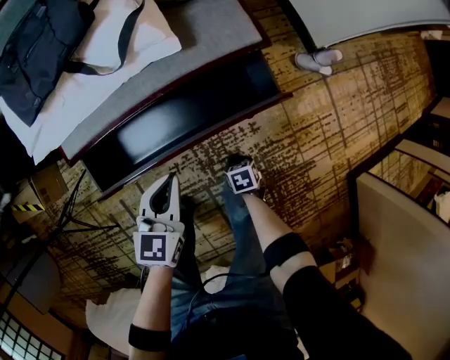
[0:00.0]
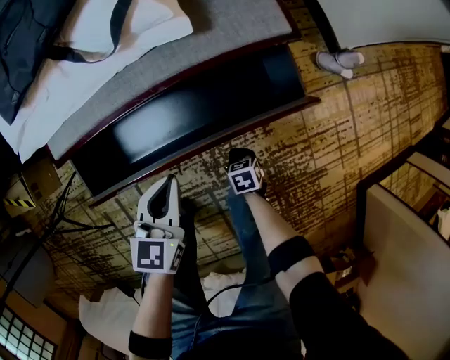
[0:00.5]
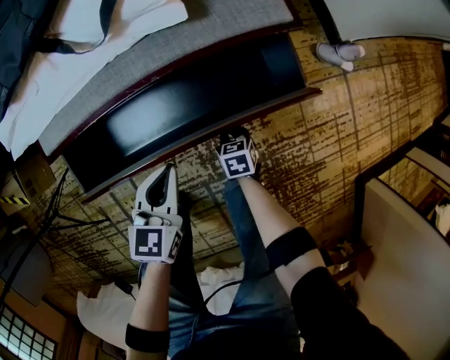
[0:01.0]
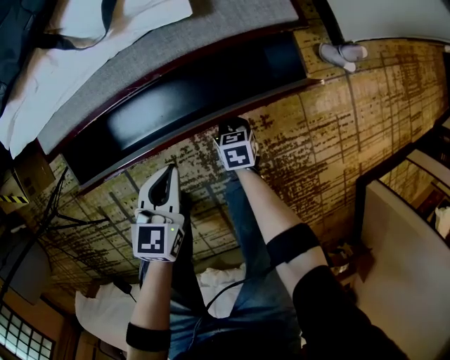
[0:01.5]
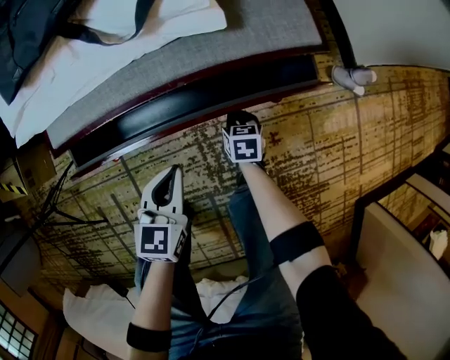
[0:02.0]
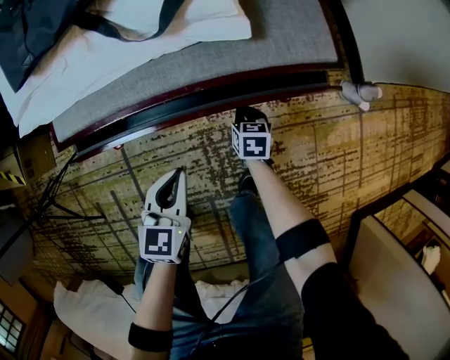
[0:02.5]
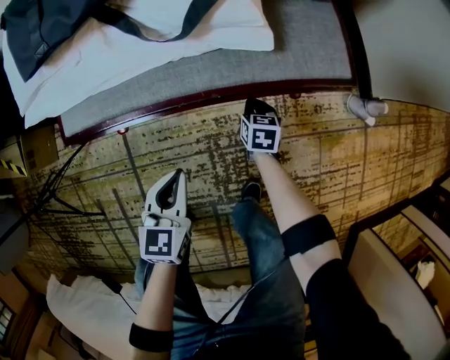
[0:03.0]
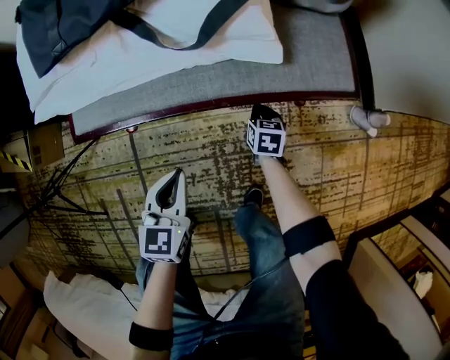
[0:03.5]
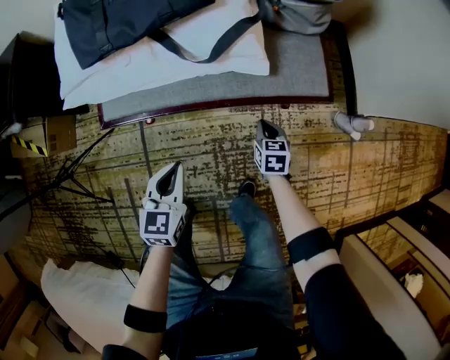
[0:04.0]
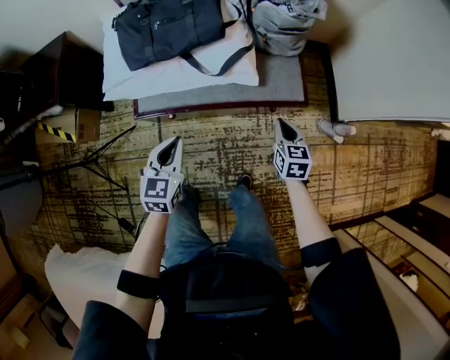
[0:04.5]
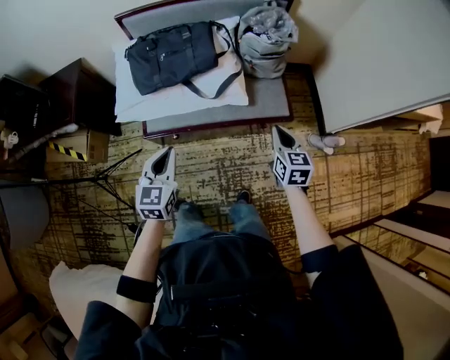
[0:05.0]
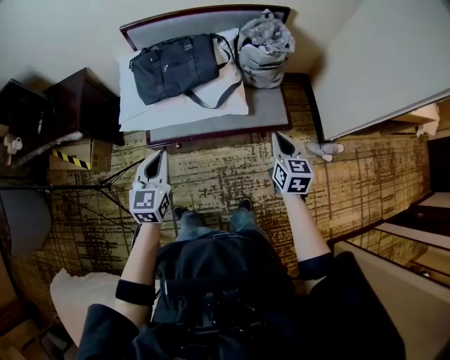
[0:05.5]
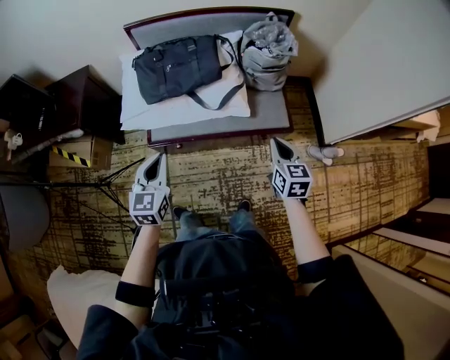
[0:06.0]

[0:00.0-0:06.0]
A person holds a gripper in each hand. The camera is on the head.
0.0 to 2.0 s: The right gripper is displaced forward by about 20 cm, and turns by about 20 degrees, while the left gripper heads downward, covering some 15 cm.
2.0 to 4.0 s: The left gripper goes about 15 cm upward and to the left. The right gripper moves upward, about 15 cm.
4.0 to 6.0 s: Both grippers move upward, roughly 40 cm. The right gripper changes its angle by roughly 20 degrees.

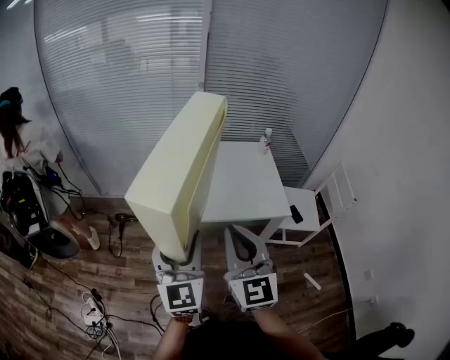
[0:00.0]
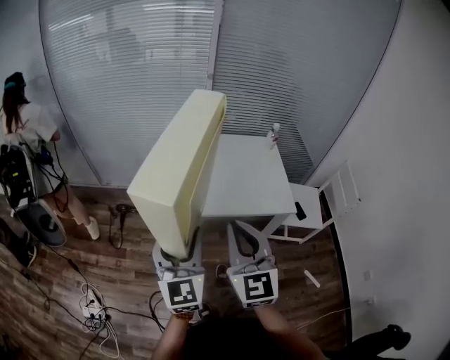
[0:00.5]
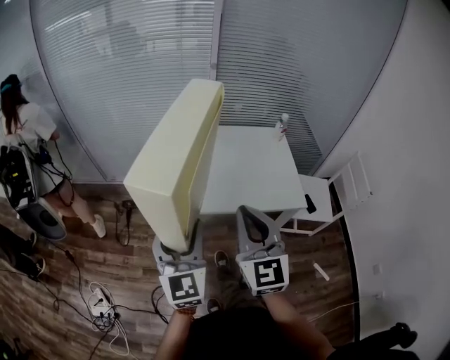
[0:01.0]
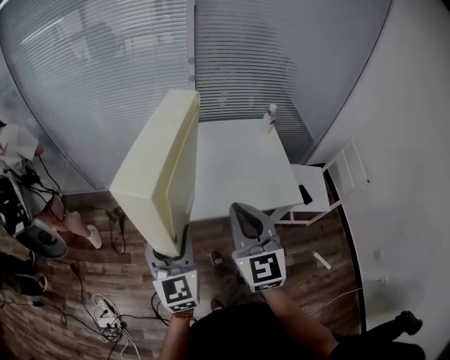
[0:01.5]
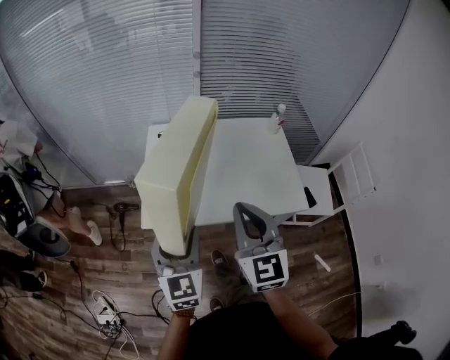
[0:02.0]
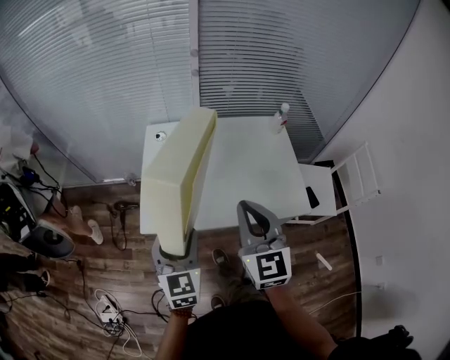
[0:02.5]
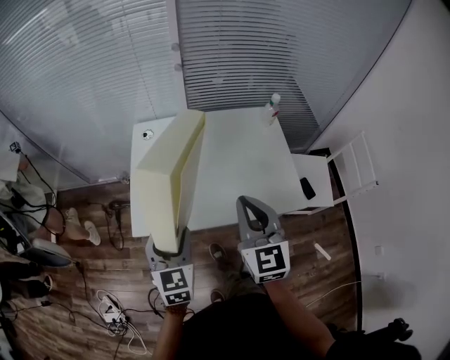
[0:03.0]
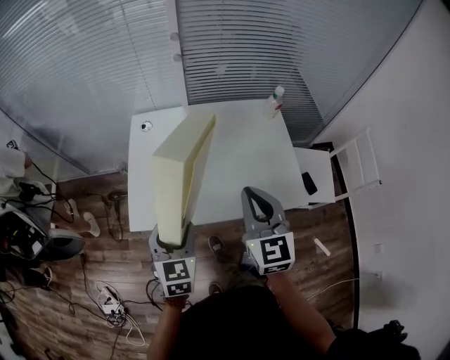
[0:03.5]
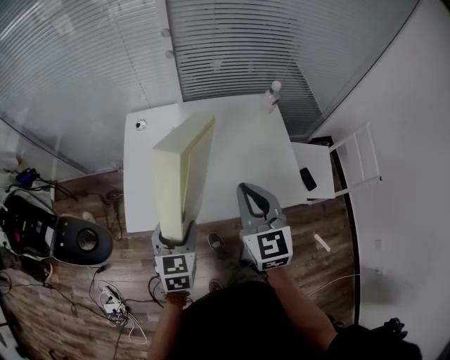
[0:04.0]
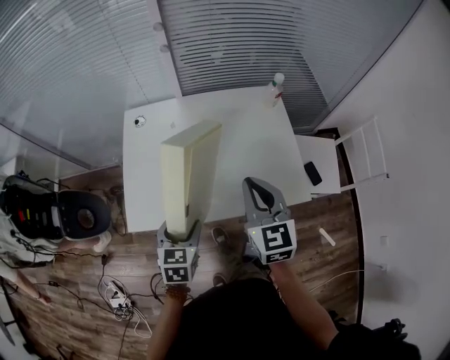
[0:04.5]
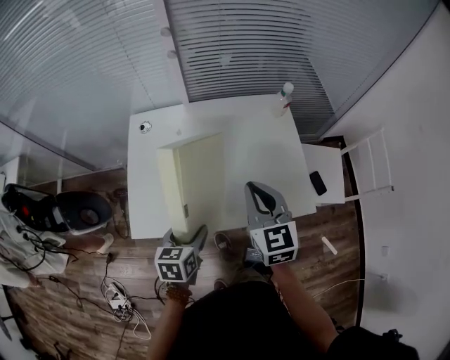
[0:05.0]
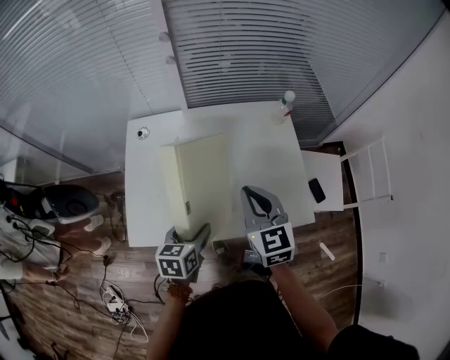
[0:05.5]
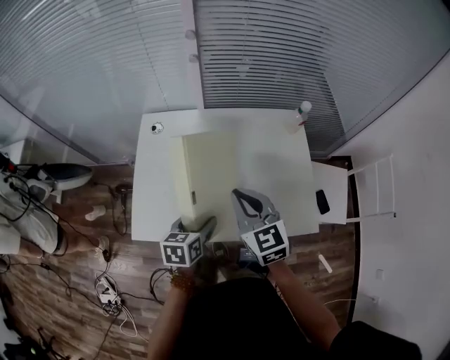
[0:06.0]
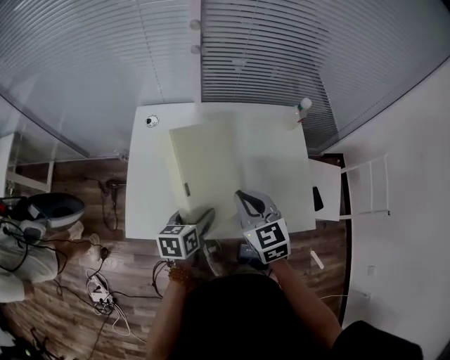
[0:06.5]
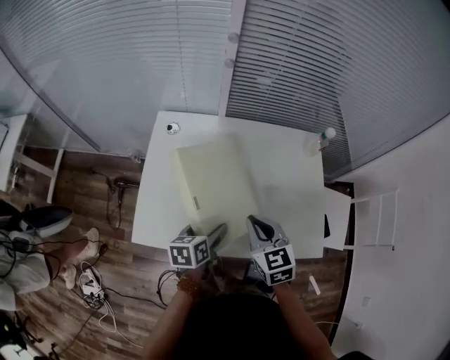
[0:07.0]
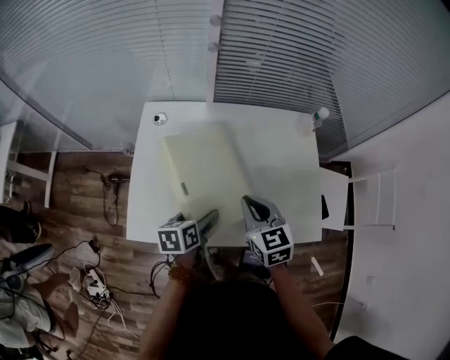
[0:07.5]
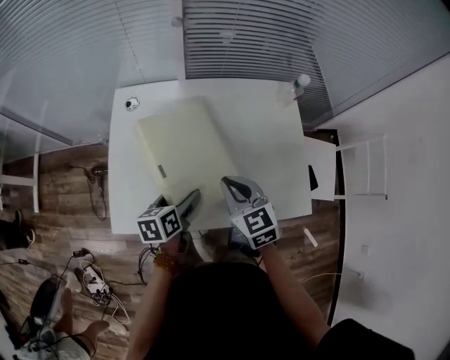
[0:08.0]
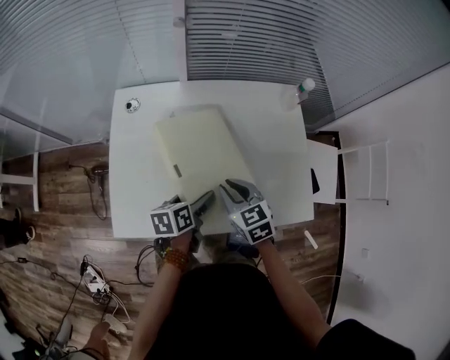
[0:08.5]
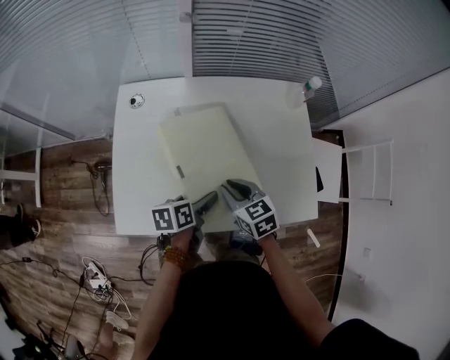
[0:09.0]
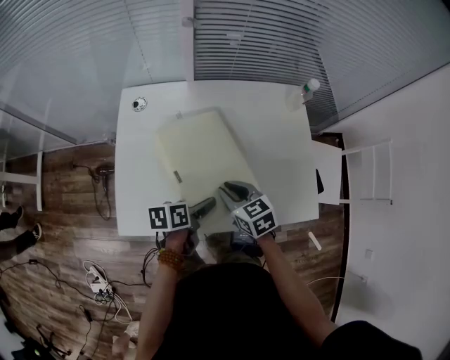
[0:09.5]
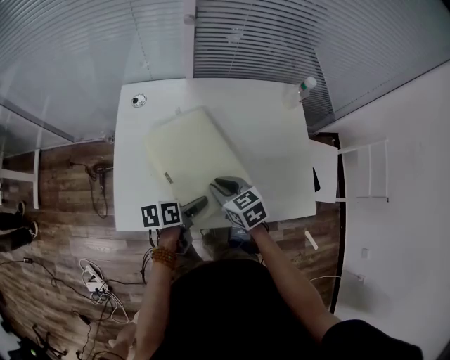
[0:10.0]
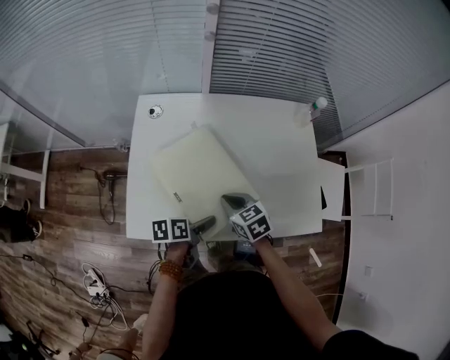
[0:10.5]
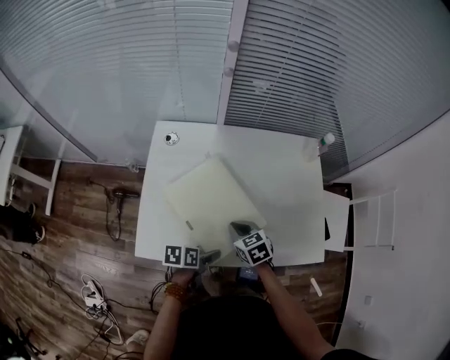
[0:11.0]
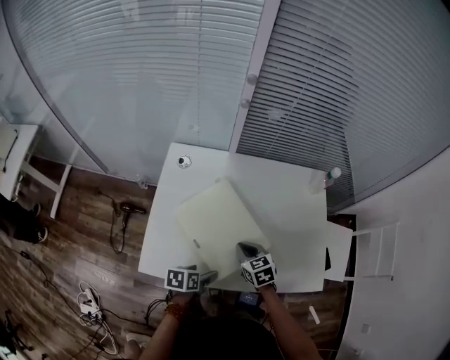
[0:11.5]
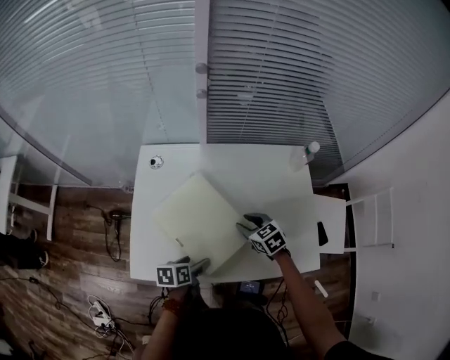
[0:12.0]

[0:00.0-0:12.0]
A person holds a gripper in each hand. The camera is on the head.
0.0 to 2.0 s: The right gripper is displaced forward by about 20 cm, while the left gripper shifts approximately 20 cm forward and downward.
2.0 to 4.0 s: The right gripper heads forward, to the right and downward, covering roughly 15 cm. The left gripper heads downward, forward and to the right, covering roughly 15 cm, and rotates roughly 20 degrees.
4.0 to 6.0 s: The two grippers go roughly 10 cm forward and downward. The left gripper turns by approximately 30 degrees.
6.0 to 8.0 s: The left gripper heads downward and forward, covering approximately 10 cm. The right gripper travels downward by roughly 10 cm.
8.0 to 10.0 s: The right gripper goes about 10 cm downward; the left gripper ends up some 5 cm from where it was.
10.0 to 12.0 s: The right gripper goes roughly 10 cm forward and to the right.

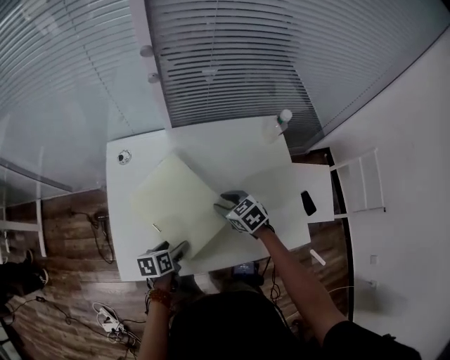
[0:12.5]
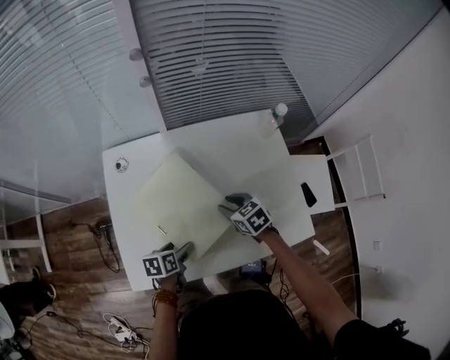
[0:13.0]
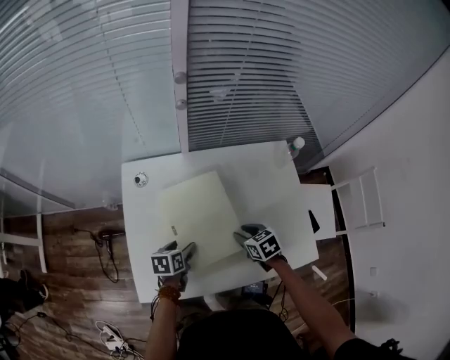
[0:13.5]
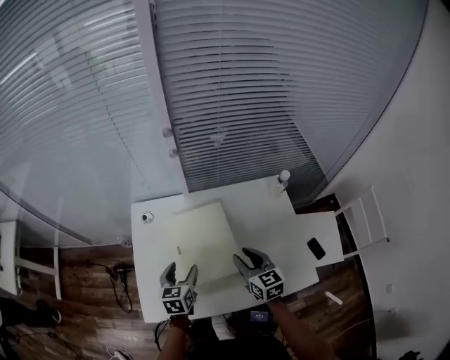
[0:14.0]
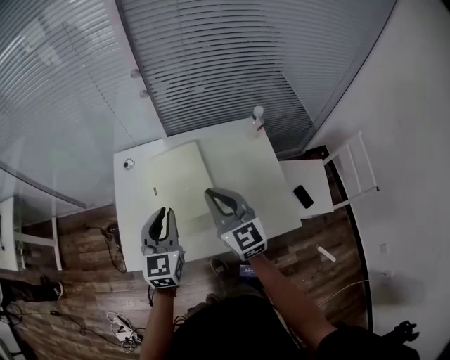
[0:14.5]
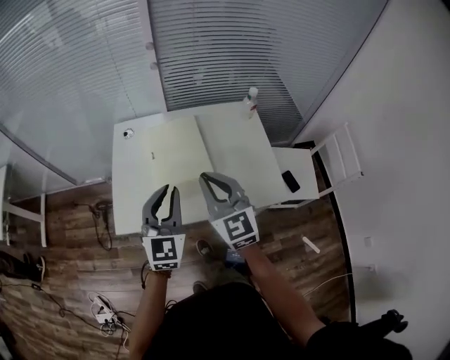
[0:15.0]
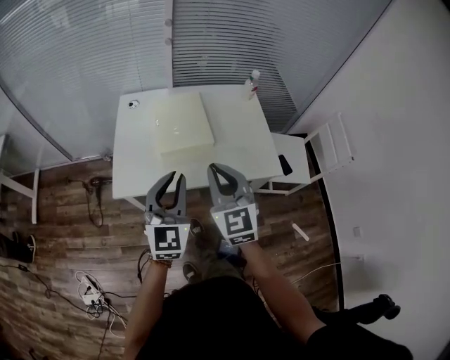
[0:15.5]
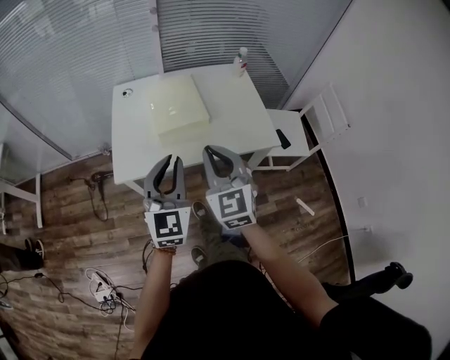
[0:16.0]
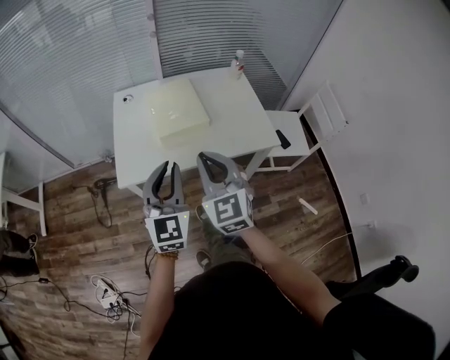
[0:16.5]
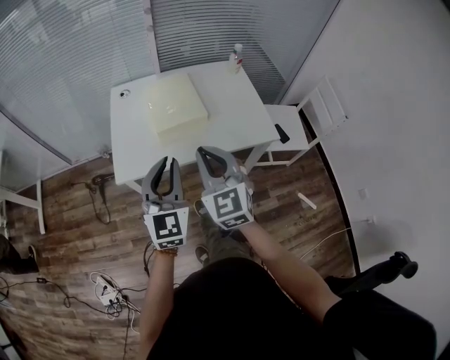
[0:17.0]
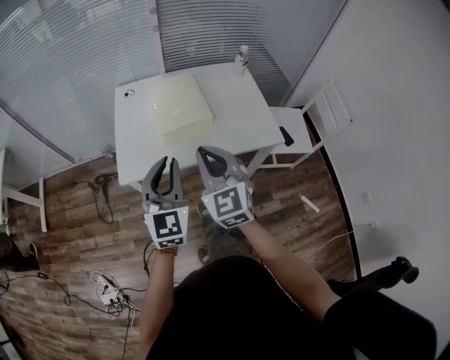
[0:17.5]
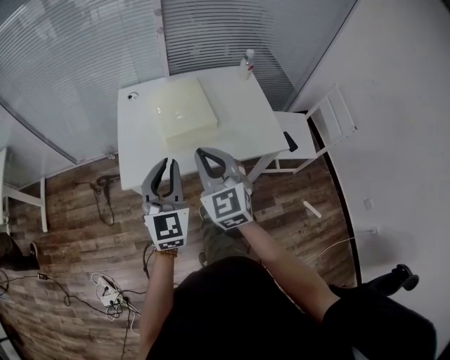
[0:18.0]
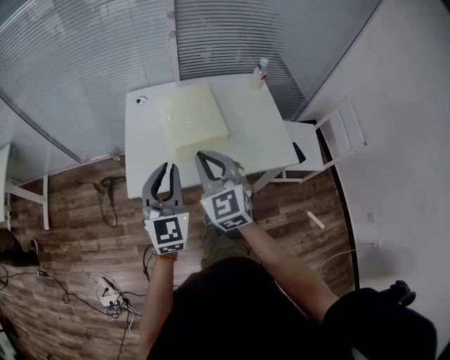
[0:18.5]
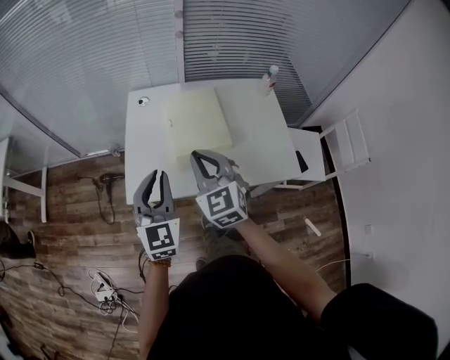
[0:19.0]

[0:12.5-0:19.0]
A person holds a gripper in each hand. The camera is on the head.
12.5 to 14.5 s: Both grippers travel together upward, about 25 cm. The left gripper points its fingers some 30 degrees further upward, and closes its fingers. Meanwhile the right gripper points its fingers roughly 40 degrees further upward, and closes its fingers.
14.5 to 17.0 s: Both grippers move backward, some 30 cm. The right gripper changes its angle by approximately 20 degrees.
17.0 to 19.0 s: The right gripper goes roughly 15 cm forward. The left gripper is displaced forward and to the left by about 15 cm.

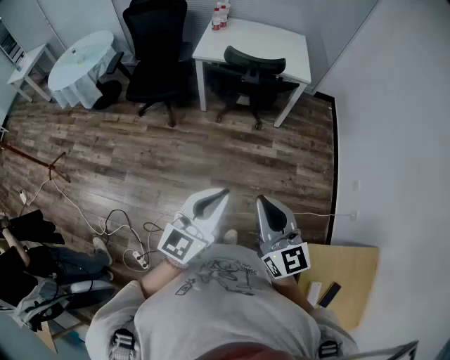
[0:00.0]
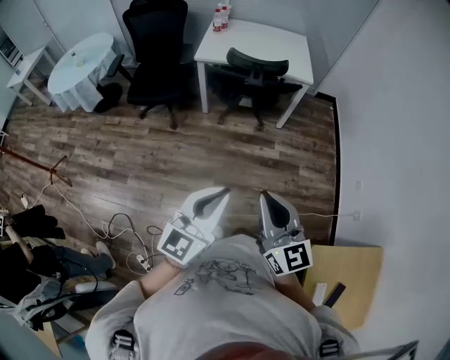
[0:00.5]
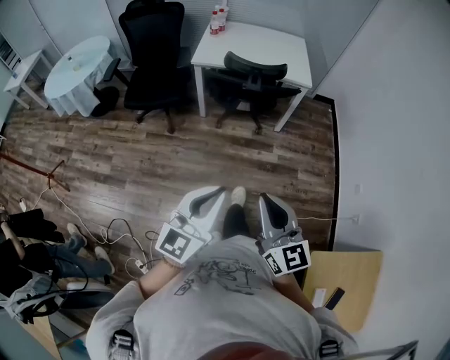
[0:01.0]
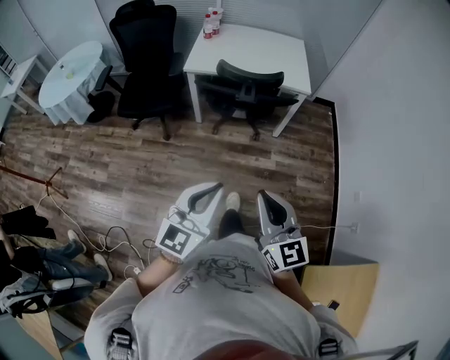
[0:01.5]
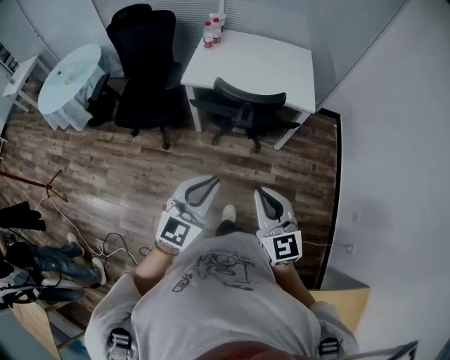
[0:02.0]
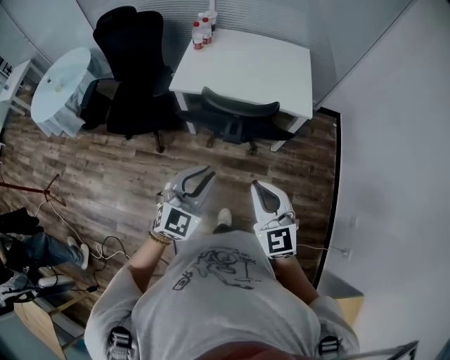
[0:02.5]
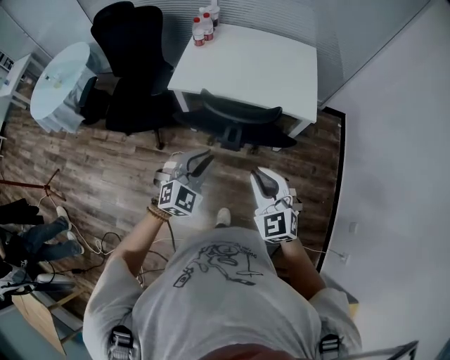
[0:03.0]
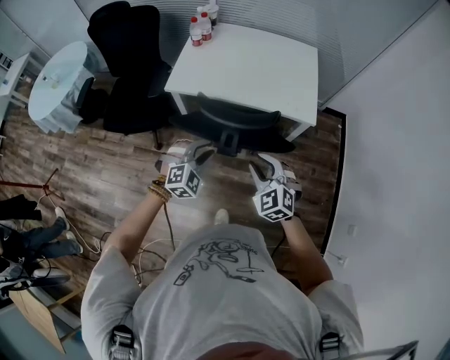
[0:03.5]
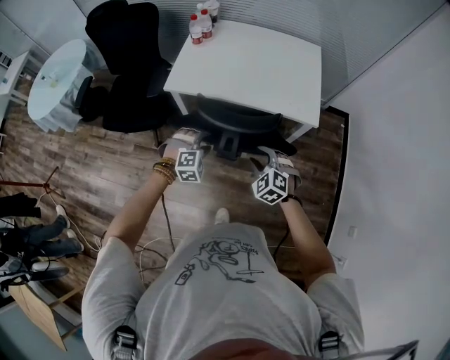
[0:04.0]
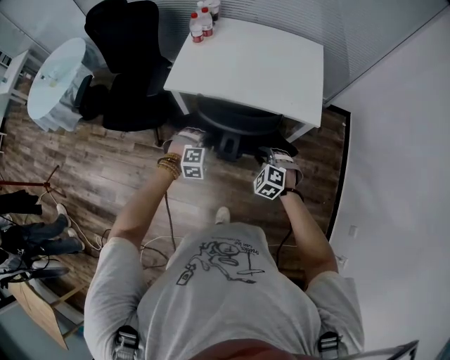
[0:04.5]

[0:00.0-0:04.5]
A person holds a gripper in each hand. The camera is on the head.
0.0 to 2.0 s: The grippers both shift forward by some 35 cm.
2.0 to 4.5 s: The two grippers go roughly 50 cm forward and downward. The right gripper tips its fingers downward by roughly 50 degrees, and opens its fingers. The left gripper tilts its fingers about 50 degrees downward, and opens, then closes again.
